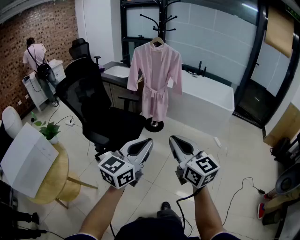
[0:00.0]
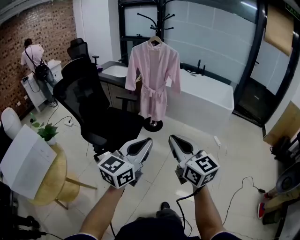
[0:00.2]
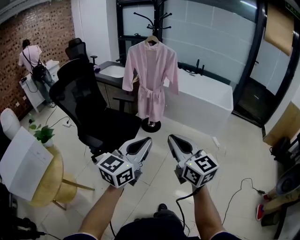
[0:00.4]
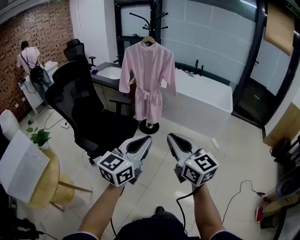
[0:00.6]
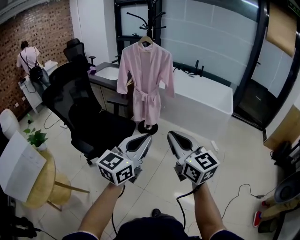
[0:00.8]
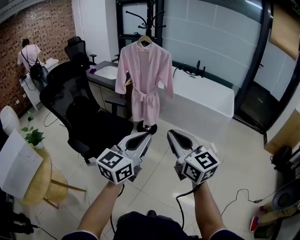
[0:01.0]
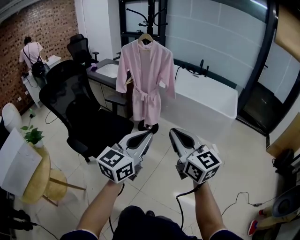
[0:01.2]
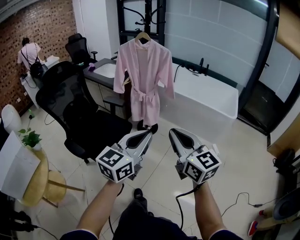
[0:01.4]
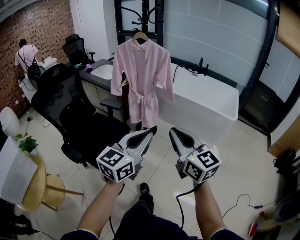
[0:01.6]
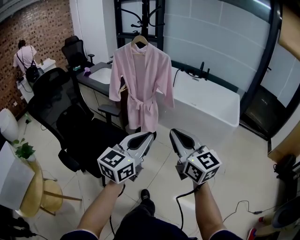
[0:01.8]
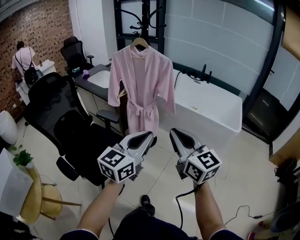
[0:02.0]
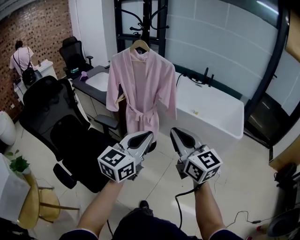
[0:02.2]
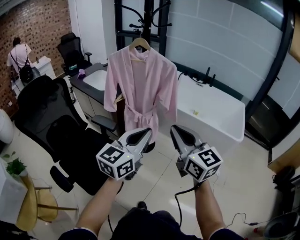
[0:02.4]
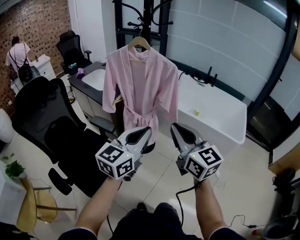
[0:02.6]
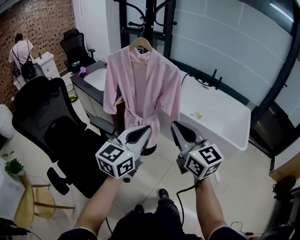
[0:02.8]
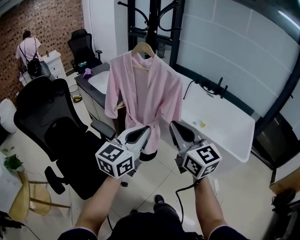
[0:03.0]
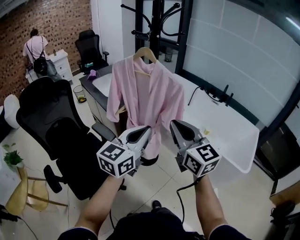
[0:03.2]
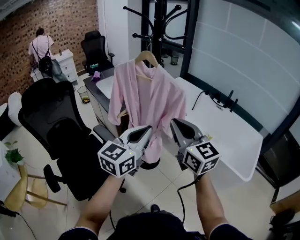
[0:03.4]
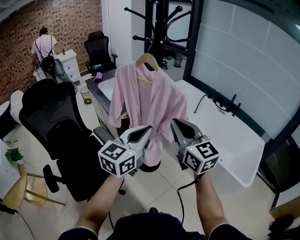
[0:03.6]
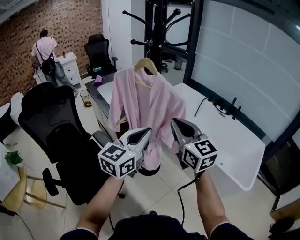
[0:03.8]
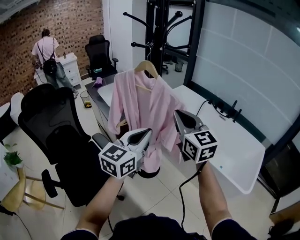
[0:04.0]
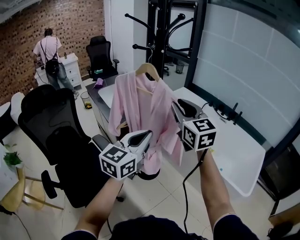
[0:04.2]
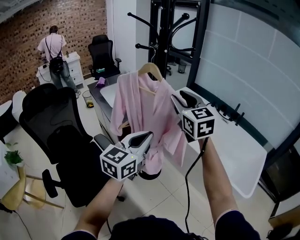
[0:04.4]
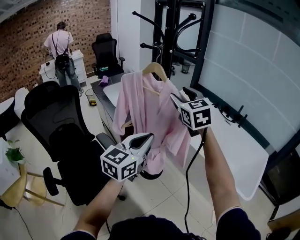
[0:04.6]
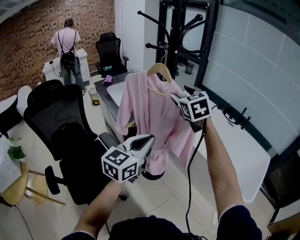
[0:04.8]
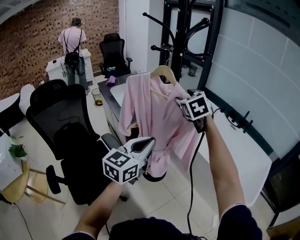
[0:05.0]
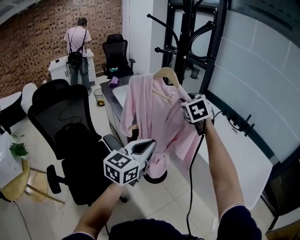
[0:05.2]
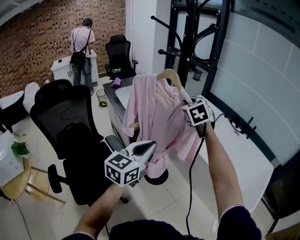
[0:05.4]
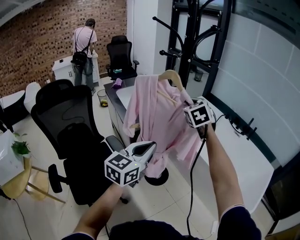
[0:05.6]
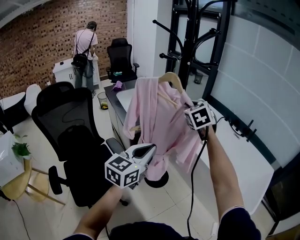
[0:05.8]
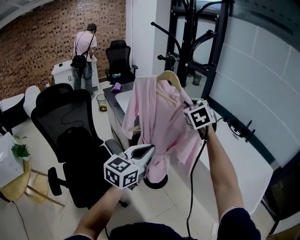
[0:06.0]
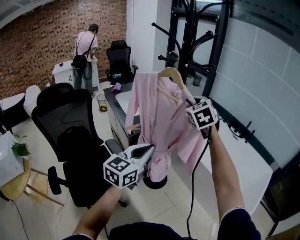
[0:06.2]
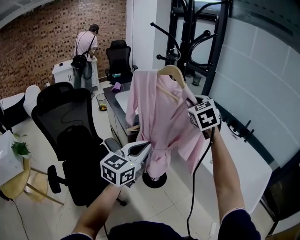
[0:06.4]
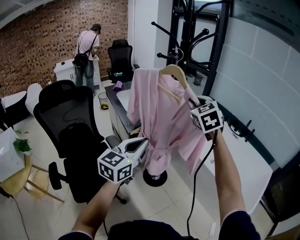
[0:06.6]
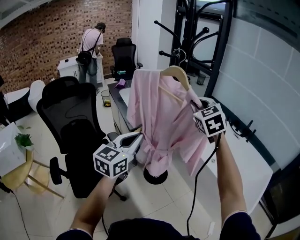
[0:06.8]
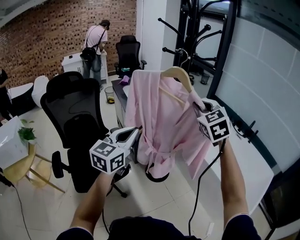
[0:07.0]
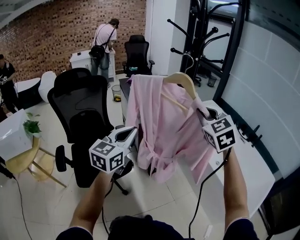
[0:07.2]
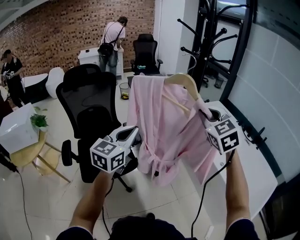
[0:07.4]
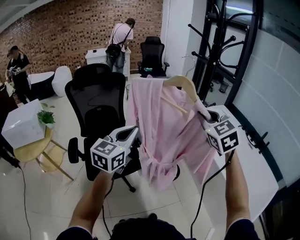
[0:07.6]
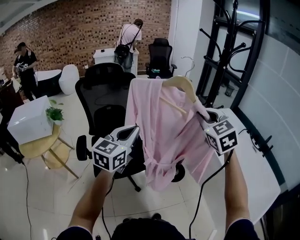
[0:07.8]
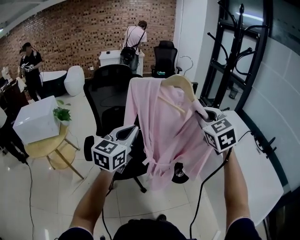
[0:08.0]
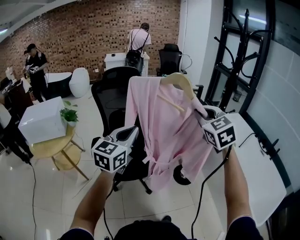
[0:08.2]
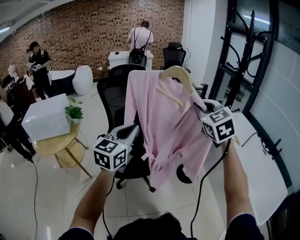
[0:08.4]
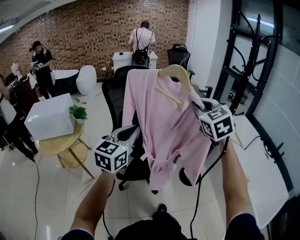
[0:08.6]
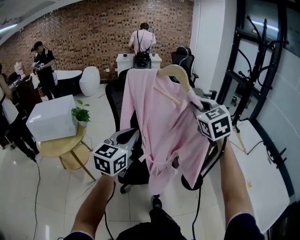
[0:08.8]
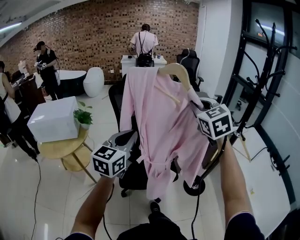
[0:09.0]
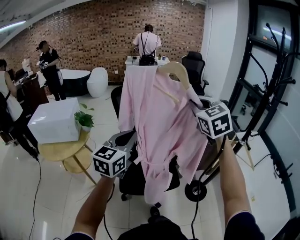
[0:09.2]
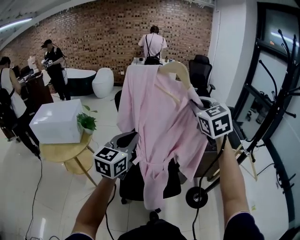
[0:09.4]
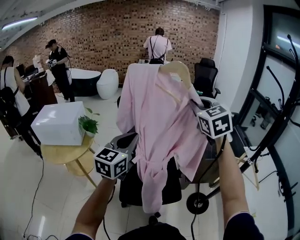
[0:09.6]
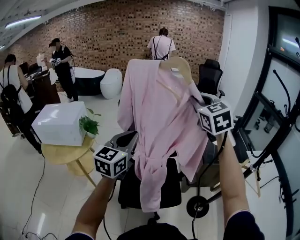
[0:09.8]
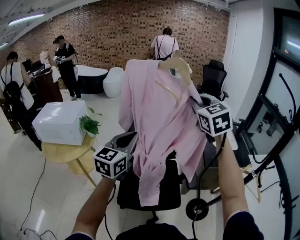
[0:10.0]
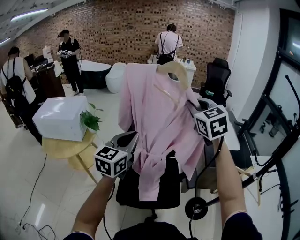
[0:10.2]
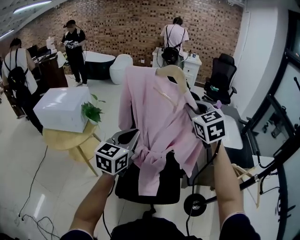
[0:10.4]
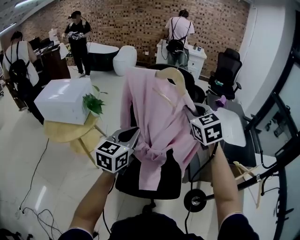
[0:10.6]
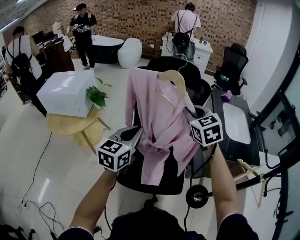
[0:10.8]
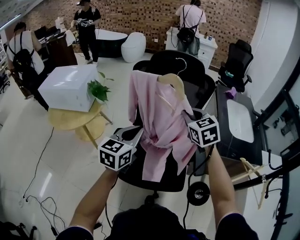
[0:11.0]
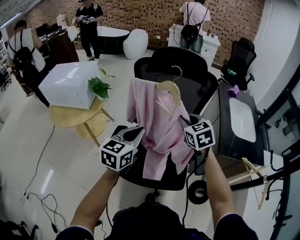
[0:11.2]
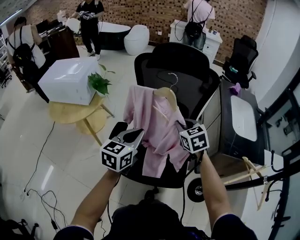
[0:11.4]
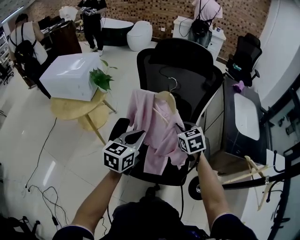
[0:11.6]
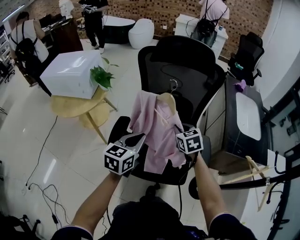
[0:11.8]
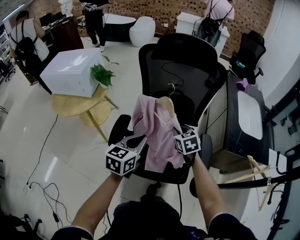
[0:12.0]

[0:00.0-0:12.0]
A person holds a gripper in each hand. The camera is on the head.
0:00.0 to 0:01.6: Both grippers move forward and to the right, about 30 cm.
0:01.6 to 0:03.0: The grippers both shift forward by about 35 cm.
0:03.0 to 0:04.4: The left gripper heads forward, covering about 15 cm, while the right gripper moves forward, approximately 25 cm, and opens.
0:04.4 to 0:06.0: The right gripper heads forward, covering approximately 10 cm, changes its angle by approximately 30 degrees, and closes.
0:06.0 to 0:07.6: The left gripper moves to the left and backward, roughly 15 cm, and swivels approximately 30 degrees. The right gripper is displaced backward by roughly 20 cm, and changes its angle by about 20 degrees.
0:07.6 to 0:09.0: The two grippers go about 30 cm to the left.
0:09.0 to 0:10.4: The grippers both shift forward by some 20 cm.
0:10.4 to 0:12.0: The right gripper shifts some 35 cm downward, and changes its angle by about 30 degrees; the left gripper travels downward by some 20 cm, and turns by approximately 20 degrees.

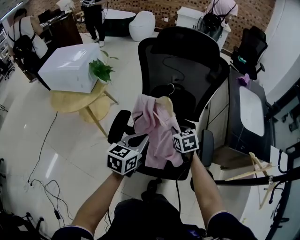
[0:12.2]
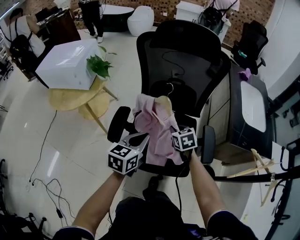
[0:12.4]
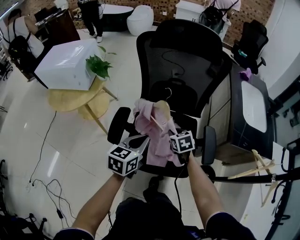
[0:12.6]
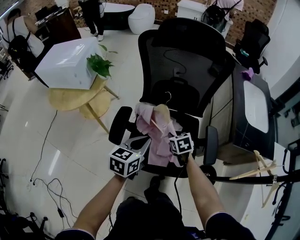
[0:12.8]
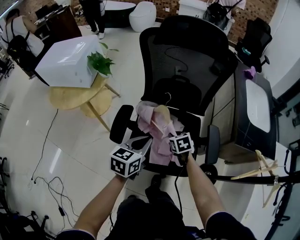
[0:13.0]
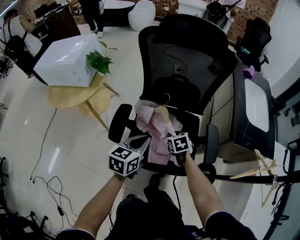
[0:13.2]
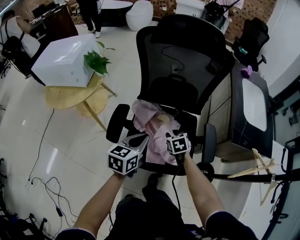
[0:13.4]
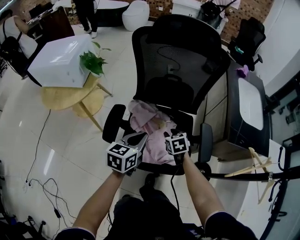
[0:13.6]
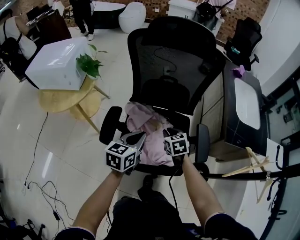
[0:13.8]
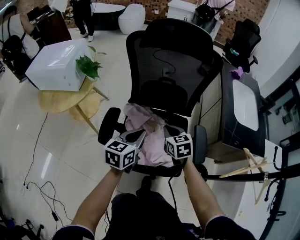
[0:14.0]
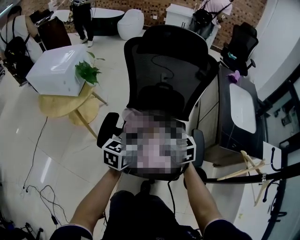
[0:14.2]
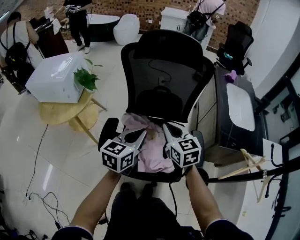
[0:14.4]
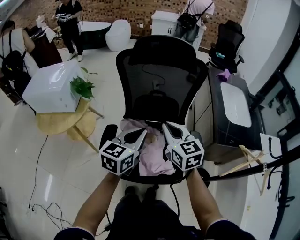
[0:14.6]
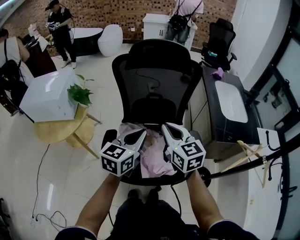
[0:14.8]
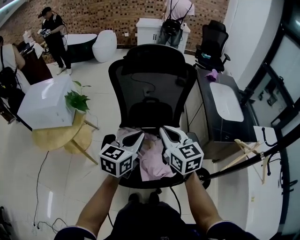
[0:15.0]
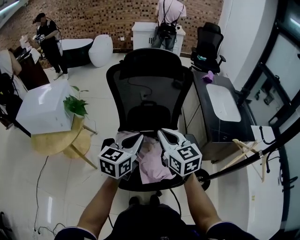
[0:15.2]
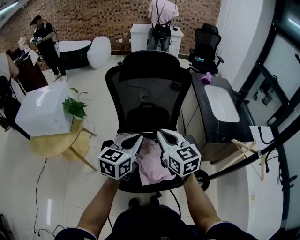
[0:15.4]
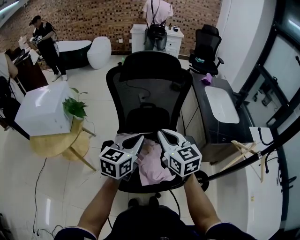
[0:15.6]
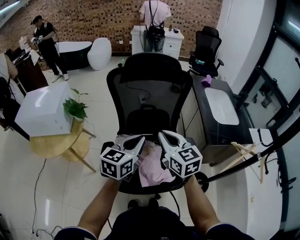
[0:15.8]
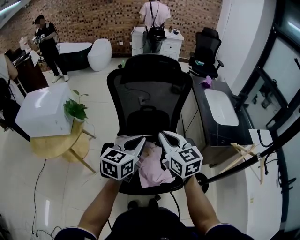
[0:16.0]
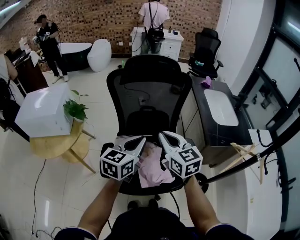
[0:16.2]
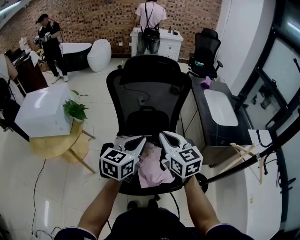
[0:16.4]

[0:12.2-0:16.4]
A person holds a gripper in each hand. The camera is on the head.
0:12.2 to 0:13.6: The right gripper is displaced downward by roughly 10 cm, and opens.
0:13.6 to 0:15.0: The left gripper travels upward by about 15 cm, while the right gripper heads upward, covering about 30 cm, tips its fingers upward by about 40 degrees, and closes its fingers.
0:15.0 to 0:16.4: There are only small adjustments of the grippers.

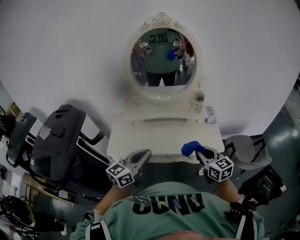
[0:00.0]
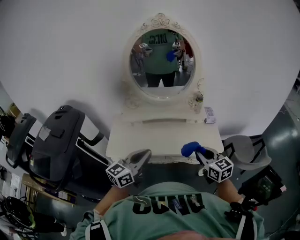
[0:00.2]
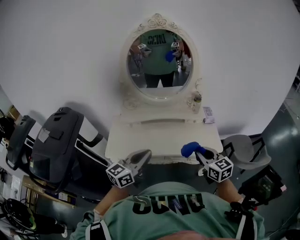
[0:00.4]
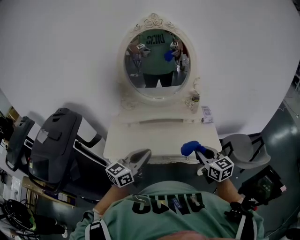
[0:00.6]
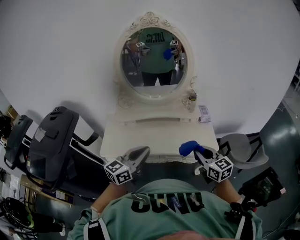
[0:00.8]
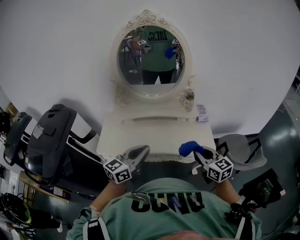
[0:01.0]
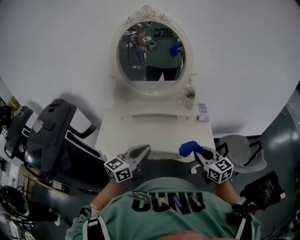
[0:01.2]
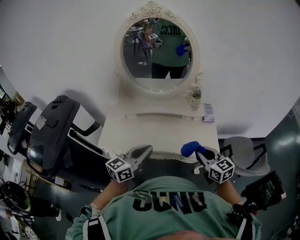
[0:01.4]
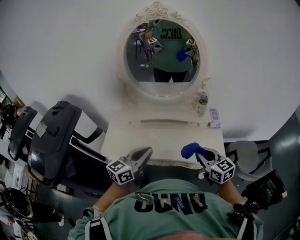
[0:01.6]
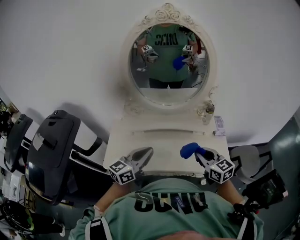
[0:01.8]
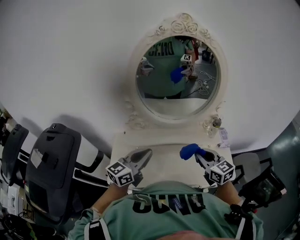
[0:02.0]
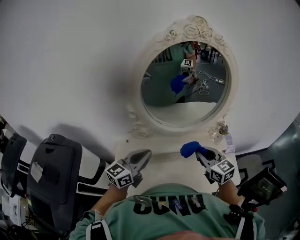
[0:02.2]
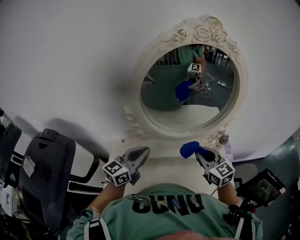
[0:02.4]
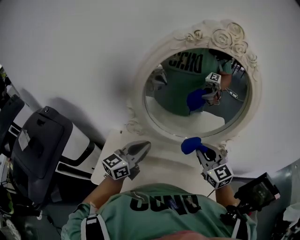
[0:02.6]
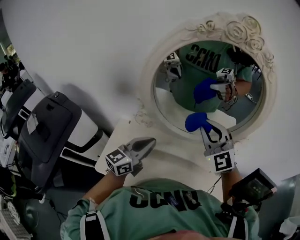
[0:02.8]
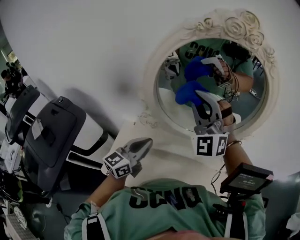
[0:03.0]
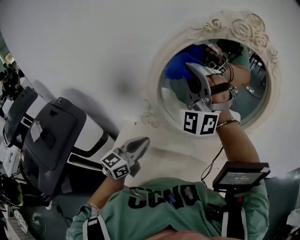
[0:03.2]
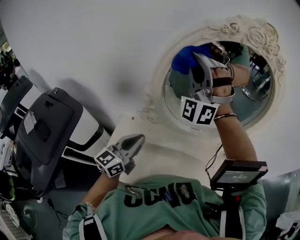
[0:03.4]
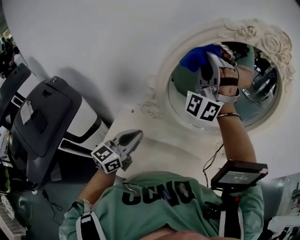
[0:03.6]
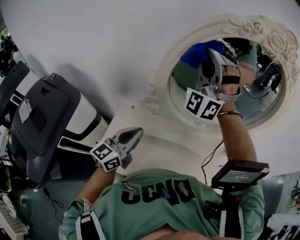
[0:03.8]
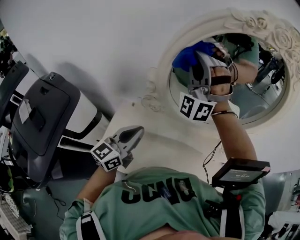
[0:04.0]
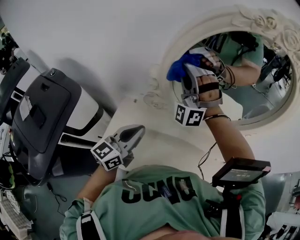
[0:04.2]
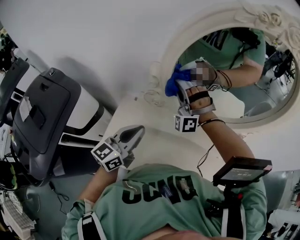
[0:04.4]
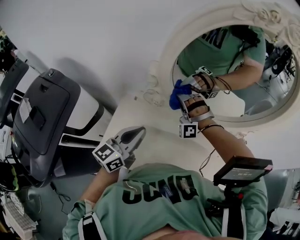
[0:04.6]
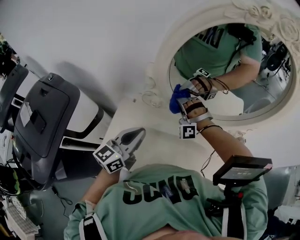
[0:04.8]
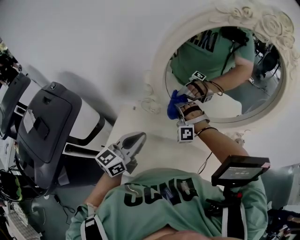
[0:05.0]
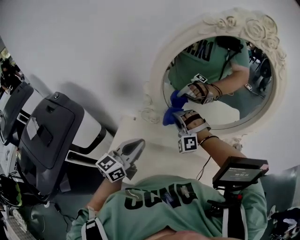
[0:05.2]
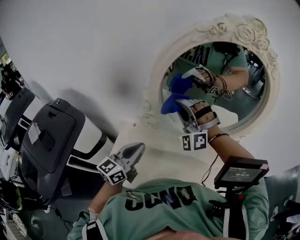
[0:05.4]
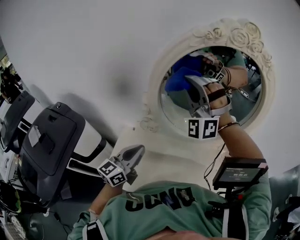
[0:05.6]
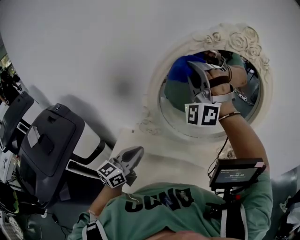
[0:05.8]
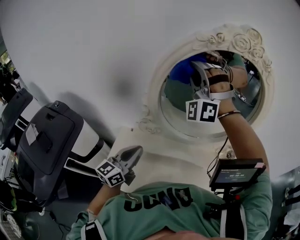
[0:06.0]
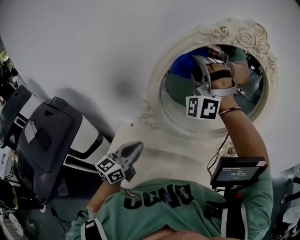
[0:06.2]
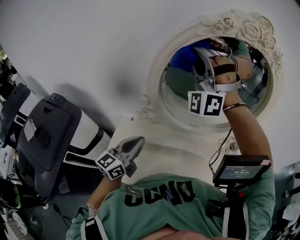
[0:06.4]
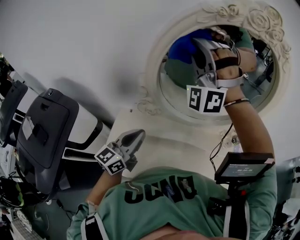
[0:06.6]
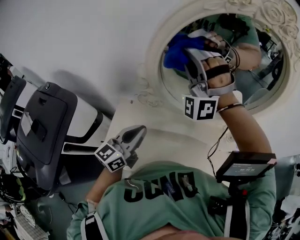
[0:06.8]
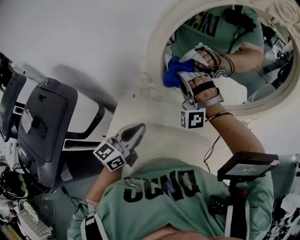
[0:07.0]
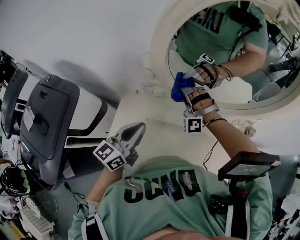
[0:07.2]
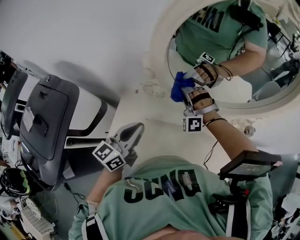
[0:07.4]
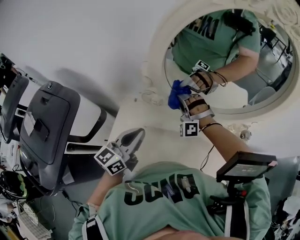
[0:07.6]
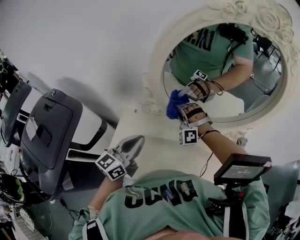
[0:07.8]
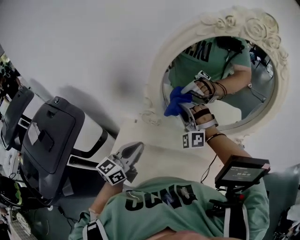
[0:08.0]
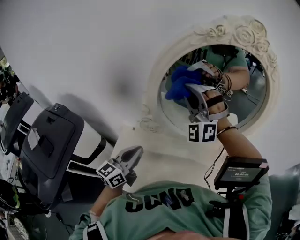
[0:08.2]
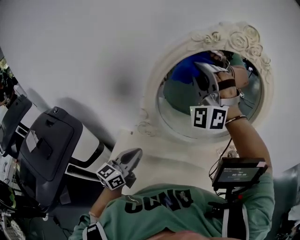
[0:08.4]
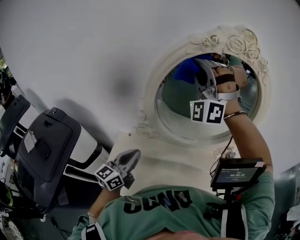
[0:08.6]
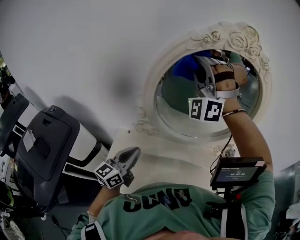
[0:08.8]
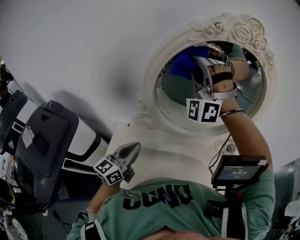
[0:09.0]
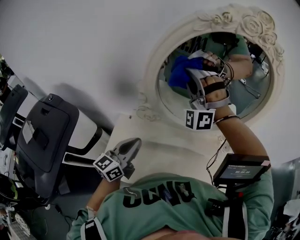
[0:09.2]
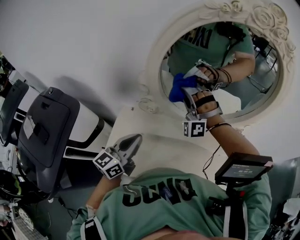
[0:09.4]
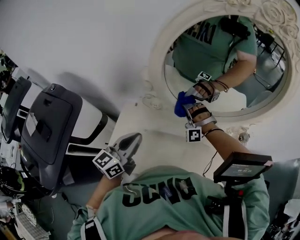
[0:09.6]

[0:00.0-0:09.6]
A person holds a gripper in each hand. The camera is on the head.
0:00.0 to 0:01.6: The left gripper ends up some 10 cm from where it was.
0:01.6 to 0:03.2: The left gripper shifts by roughly 35 cm.
0:03.2 to 0:04.8: The left gripper shifts by roughly 5 cm.
